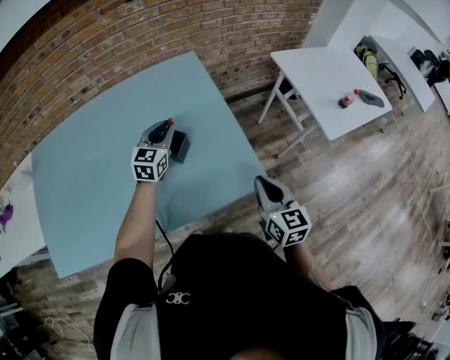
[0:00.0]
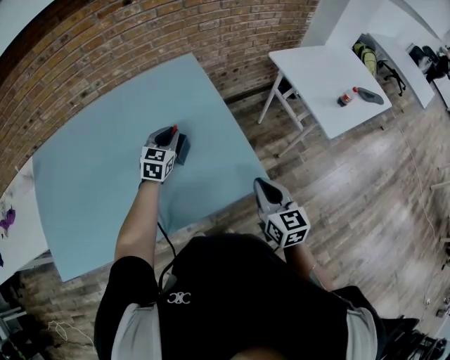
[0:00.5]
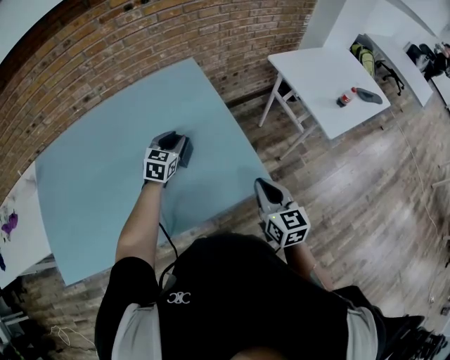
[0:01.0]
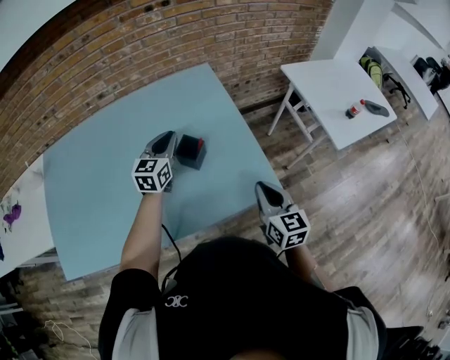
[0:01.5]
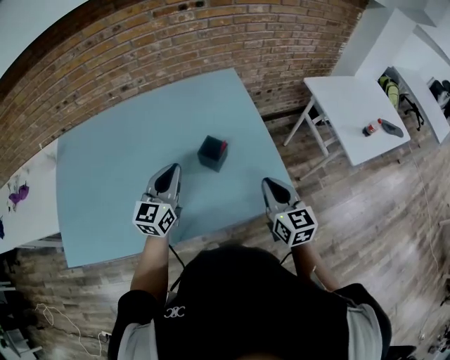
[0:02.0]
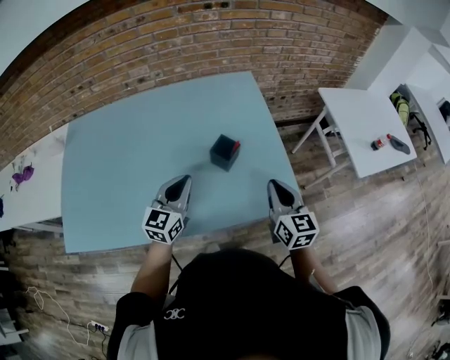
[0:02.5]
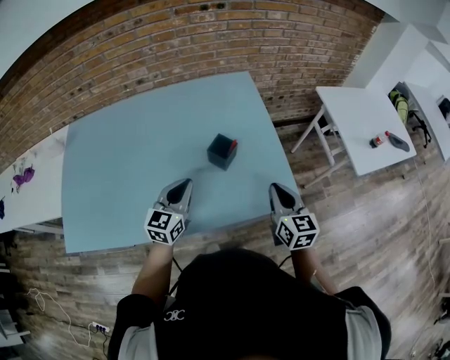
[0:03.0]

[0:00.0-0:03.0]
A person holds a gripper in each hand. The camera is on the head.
0:00.0 to 0:01.5: The left gripper changes place by roughly 5 cm.
0:01.5 to 0:03.0: The left gripper goes about 15 cm backward.

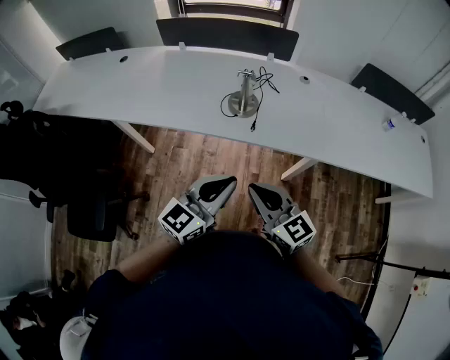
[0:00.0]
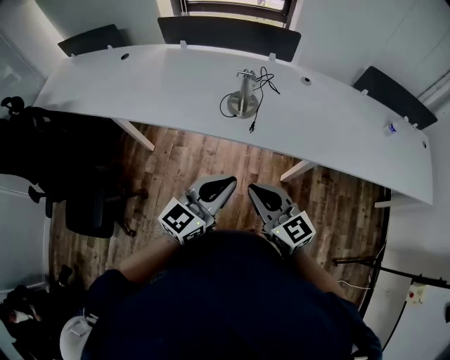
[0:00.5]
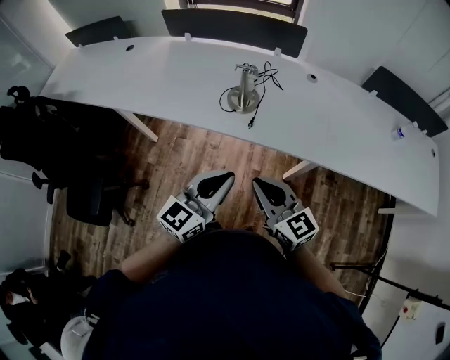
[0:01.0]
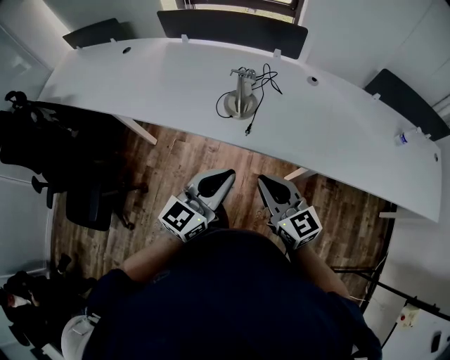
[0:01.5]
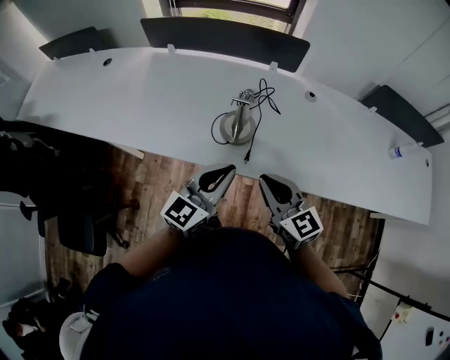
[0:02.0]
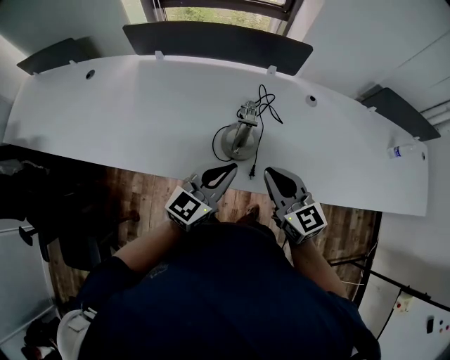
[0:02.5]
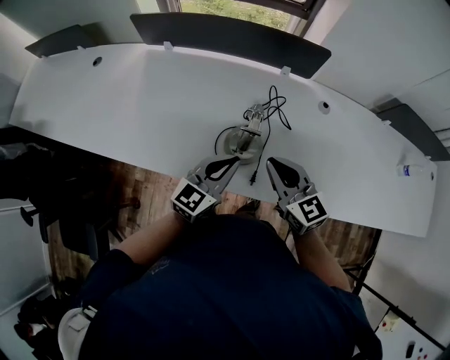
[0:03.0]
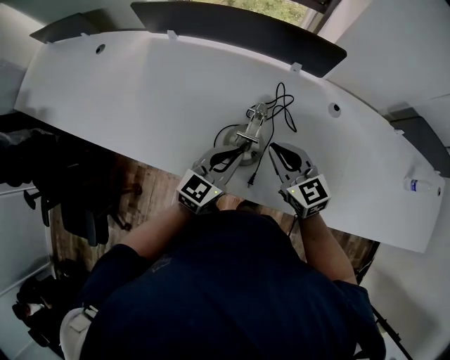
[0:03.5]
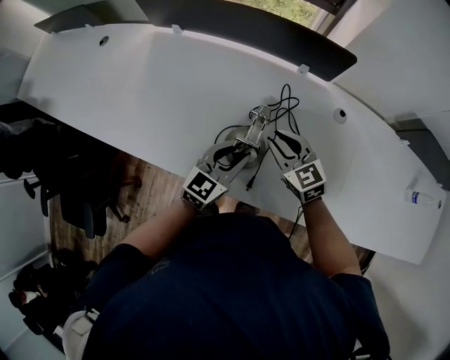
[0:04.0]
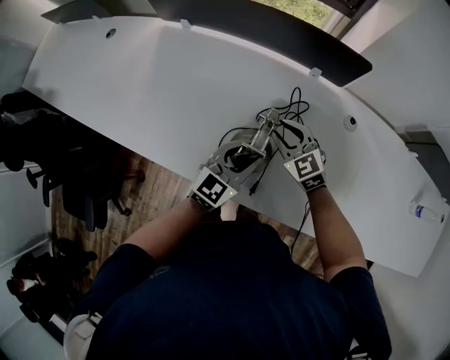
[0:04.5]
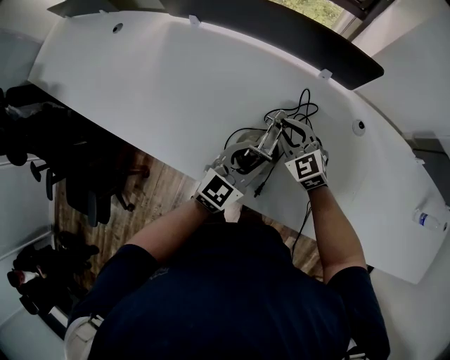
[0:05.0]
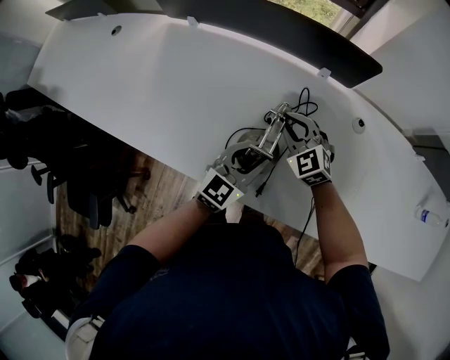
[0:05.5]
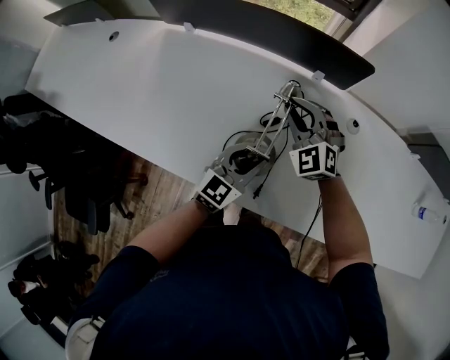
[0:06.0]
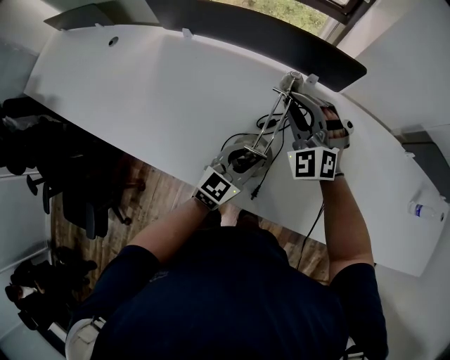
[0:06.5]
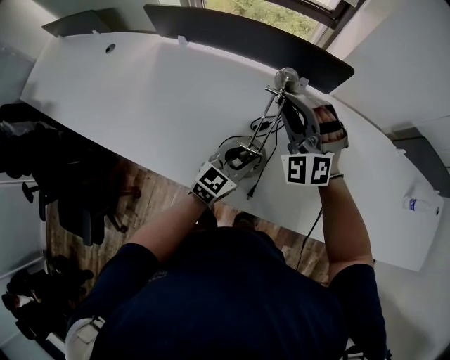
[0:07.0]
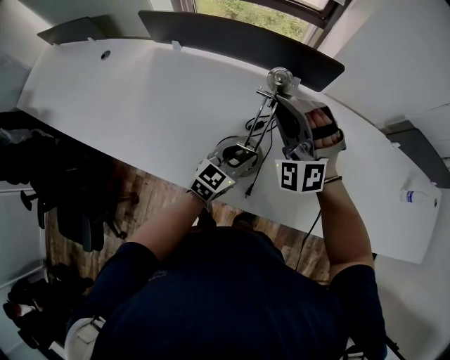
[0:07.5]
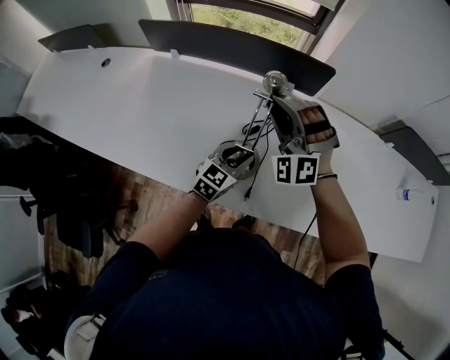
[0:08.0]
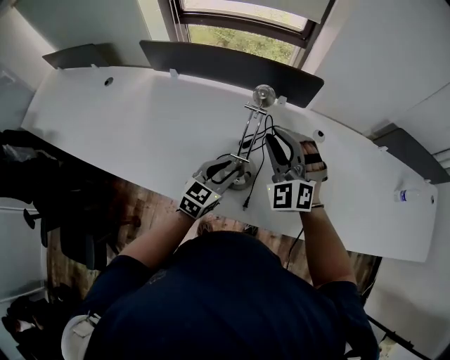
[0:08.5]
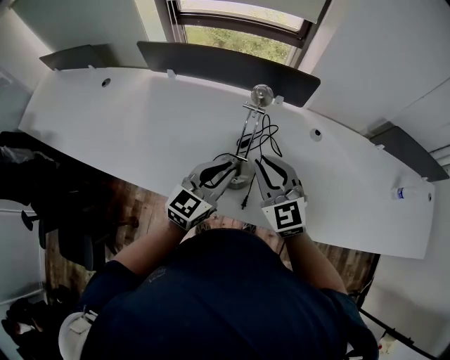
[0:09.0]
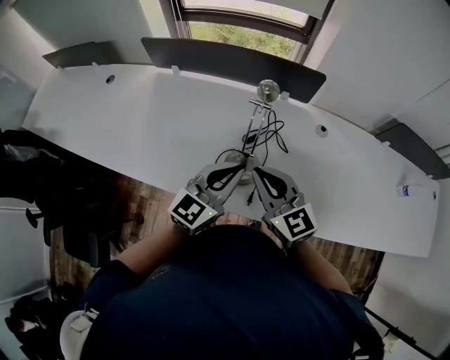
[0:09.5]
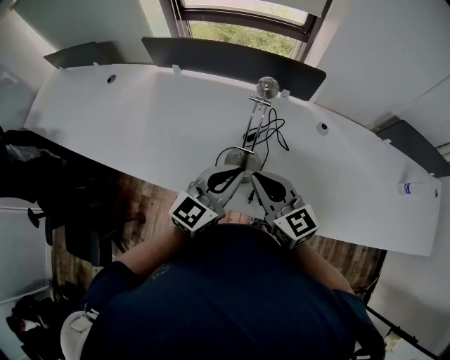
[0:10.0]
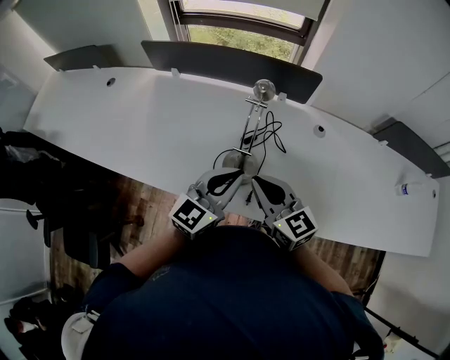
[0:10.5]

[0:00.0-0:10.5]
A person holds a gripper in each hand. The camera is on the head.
0:00.0 to 0:02.0: The two grippers go approximately 20 cm forward.
0:02.0 to 0:04.0: The right gripper moves forward, roughly 30 cm, turns by about 20 degrees, and opens. Meanwhile the left gripper goes approximately 25 cm forward and downward, and opens up.
0:04.0 to 0:06.5: The right gripper moves upward and forward, about 15 cm, and rolls counterclockwise, seen from behind, by roughly 50 degrees.
0:06.5 to 0:08.5: The right gripper travels backward and upward by roughly 10 cm.
0:08.5 to 0:10.5: The left gripper heads upward and backward, covering about 15 cm, and closes. Meanwhile the right gripper is displaced backward by about 15 cm, twists about 60 degrees clockwise, seen from behind, and closes its fingers.

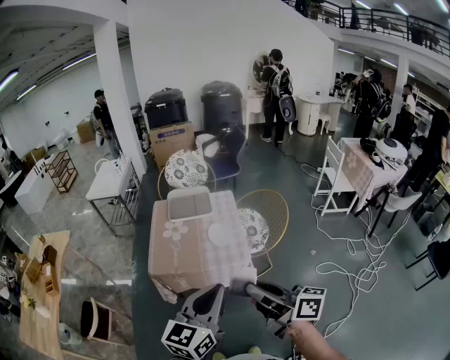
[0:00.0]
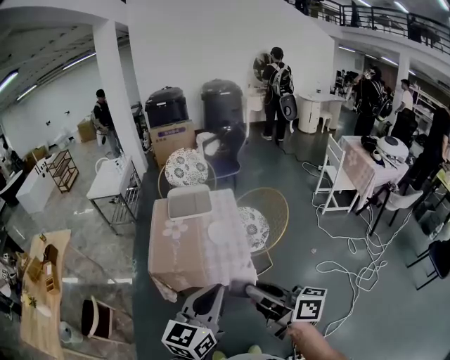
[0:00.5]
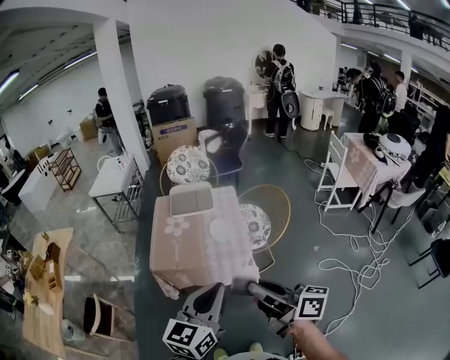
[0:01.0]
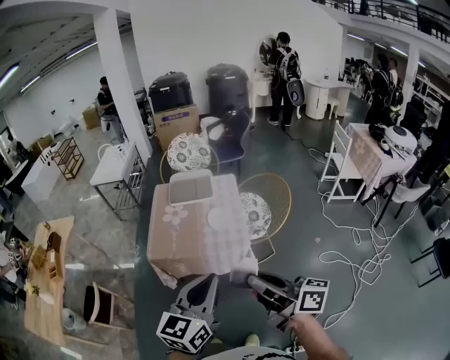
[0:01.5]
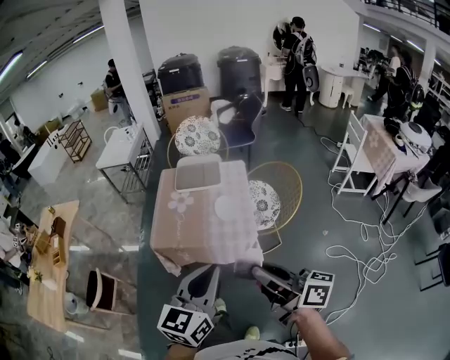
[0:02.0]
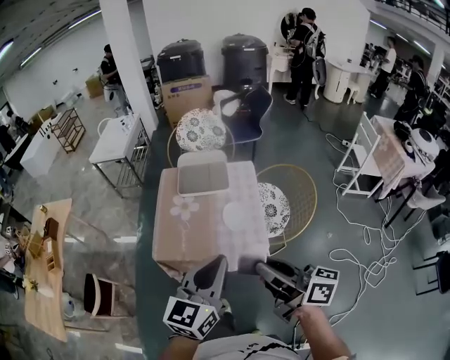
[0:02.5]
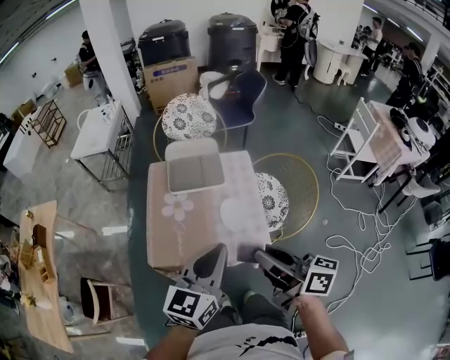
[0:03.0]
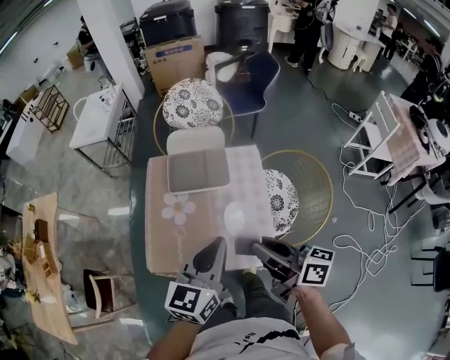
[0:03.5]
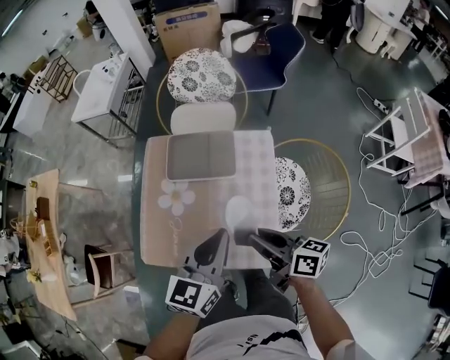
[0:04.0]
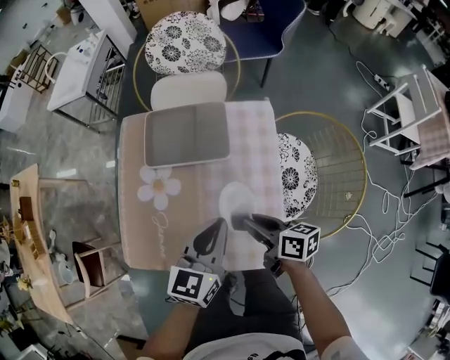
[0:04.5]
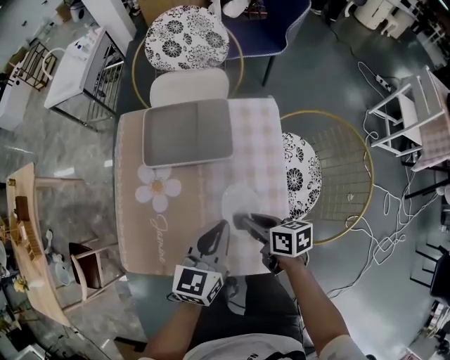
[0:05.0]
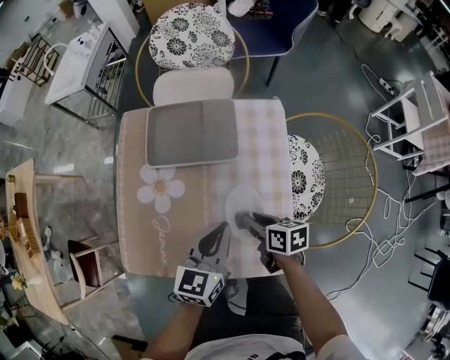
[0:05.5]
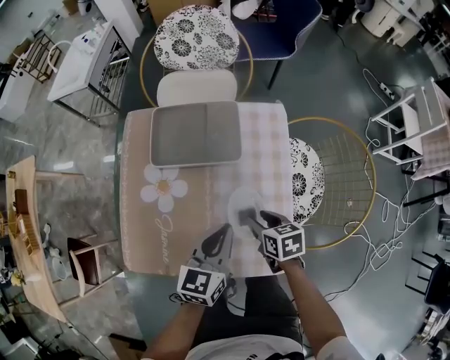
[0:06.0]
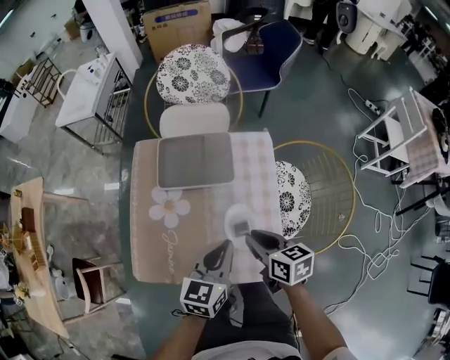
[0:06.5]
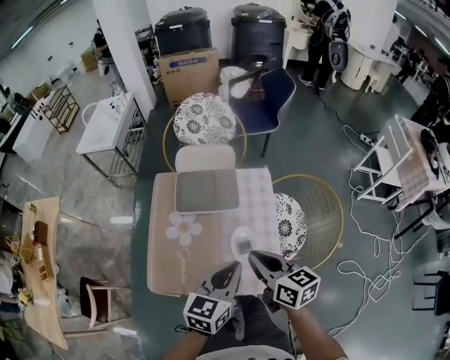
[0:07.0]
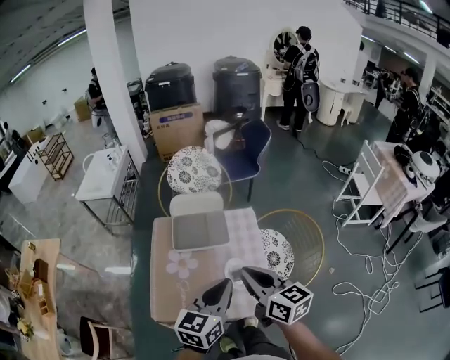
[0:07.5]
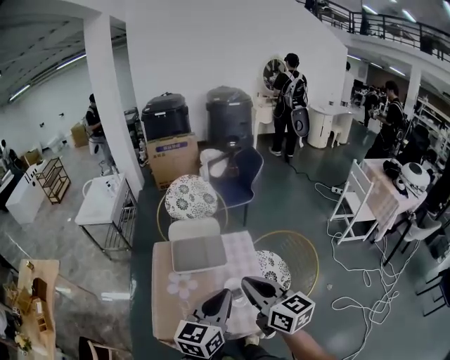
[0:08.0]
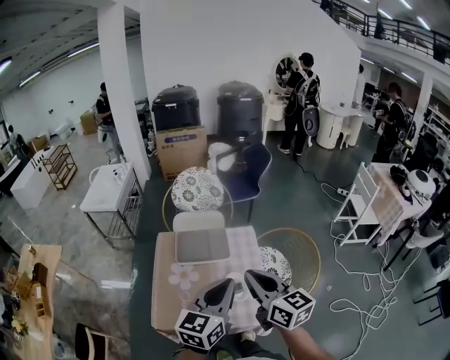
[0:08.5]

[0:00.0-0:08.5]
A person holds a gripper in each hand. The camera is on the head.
0:00.0 to 0:02.0: The left gripper changes place by roughly 5 cm; the right gripper ends up roughly 5 cm from where it was.
0:02.0 to 0:04.0: Both grippers are carried forward, about 40 cm. The right gripper shifts approximately 20 cm downward, and rotates some 20 degrees.
0:04.0 to 0:06.5: Both grippers travel together downward, approximately 15 cm. The right gripper turns by some 30 degrees.
0:06.5 to 0:08.5: Both grippers move upward, approximately 30 cm. The right gripper turns by roughly 40 degrees.

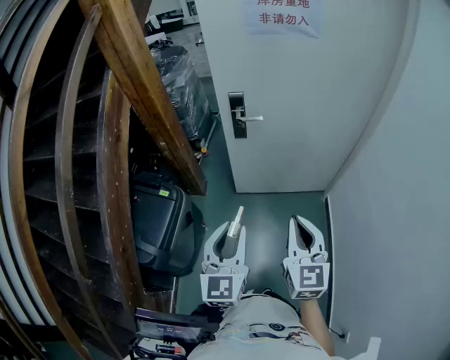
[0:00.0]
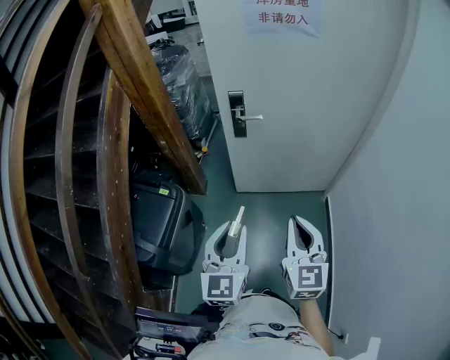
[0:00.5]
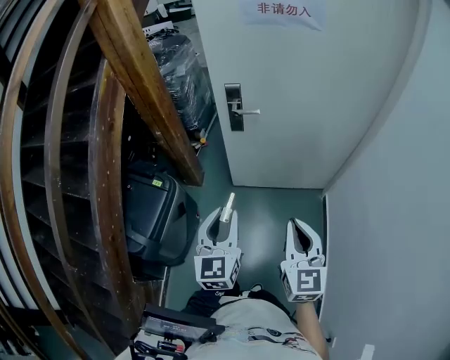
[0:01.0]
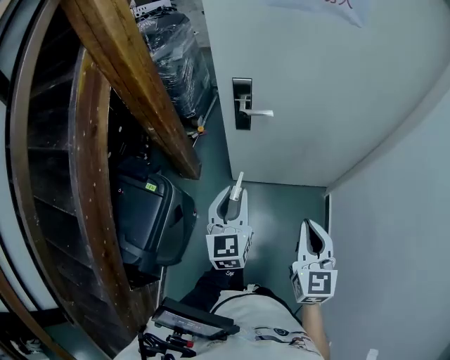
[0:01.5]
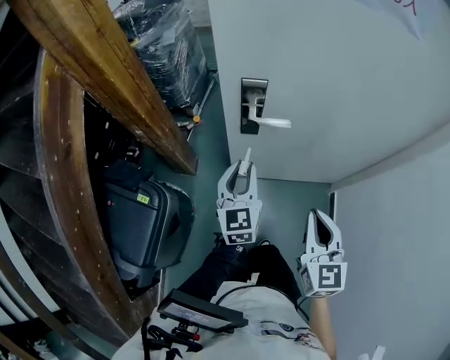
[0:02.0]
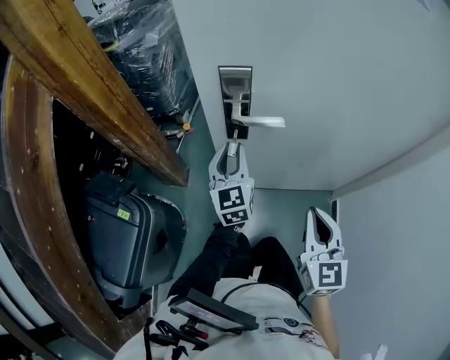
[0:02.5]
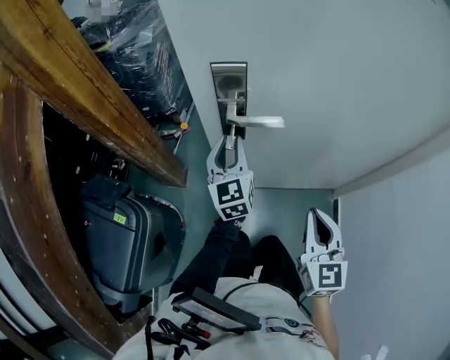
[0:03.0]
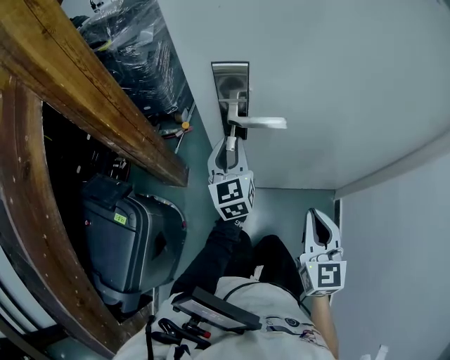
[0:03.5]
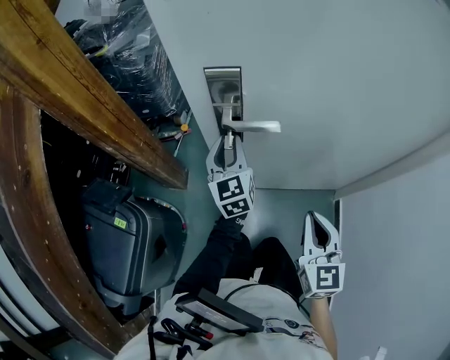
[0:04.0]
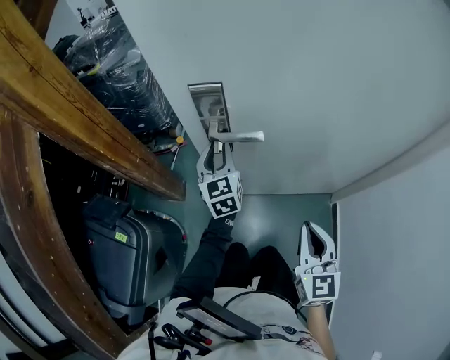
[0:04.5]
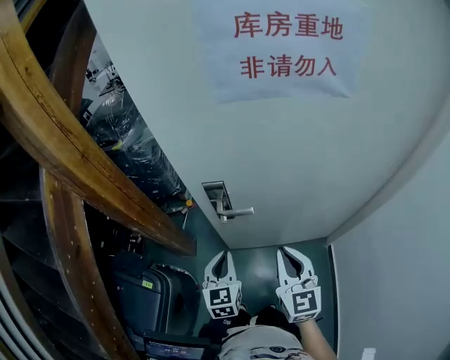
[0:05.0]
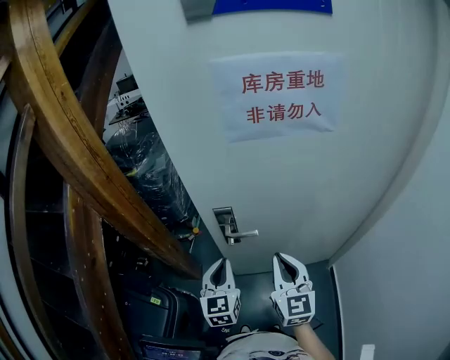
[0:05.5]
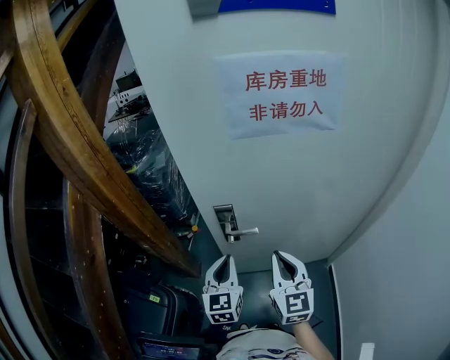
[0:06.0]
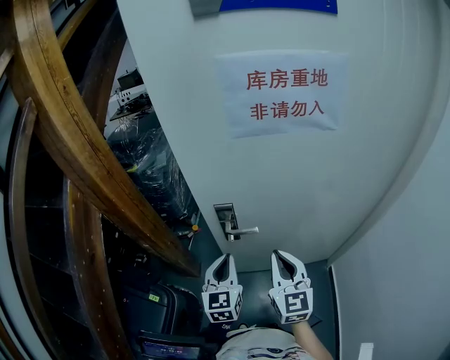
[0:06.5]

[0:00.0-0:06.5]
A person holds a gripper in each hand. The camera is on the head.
0:00.0 to 0:02.0: The two grippers go approximately 35 cm forward and downward.
0:02.0 to 0:04.5: The right gripper shifts some 15 cm downward, to the right and forward, while the left gripper travels forward and downward by roughly 20 cm.
0:04.5 to 0:06.5: The left gripper shifts some 30 cm upward and backward, and closes its fingers; the right gripper goes roughly 25 cm upward.
